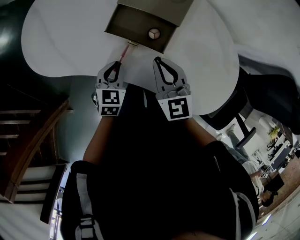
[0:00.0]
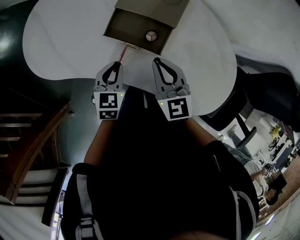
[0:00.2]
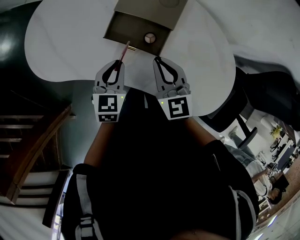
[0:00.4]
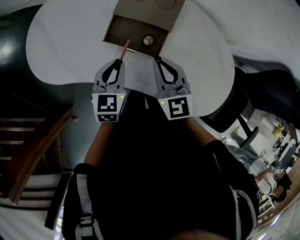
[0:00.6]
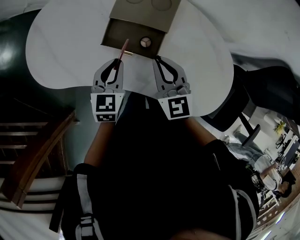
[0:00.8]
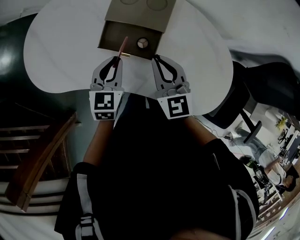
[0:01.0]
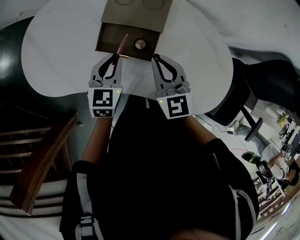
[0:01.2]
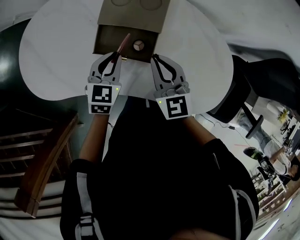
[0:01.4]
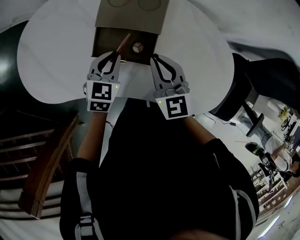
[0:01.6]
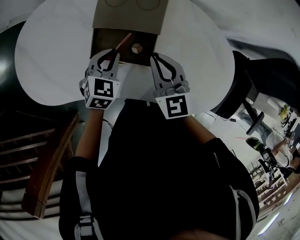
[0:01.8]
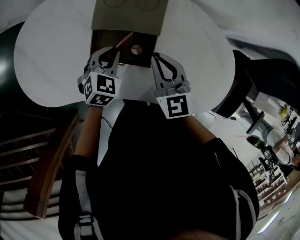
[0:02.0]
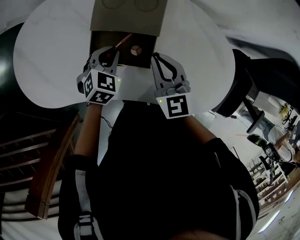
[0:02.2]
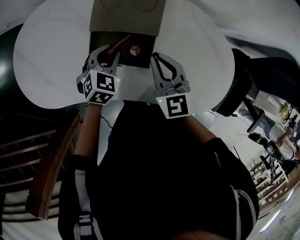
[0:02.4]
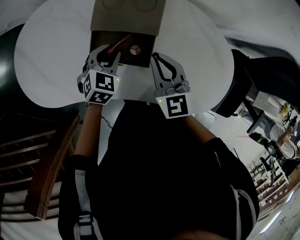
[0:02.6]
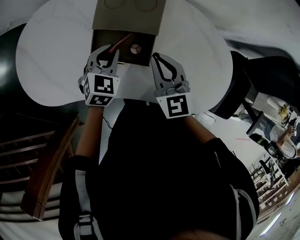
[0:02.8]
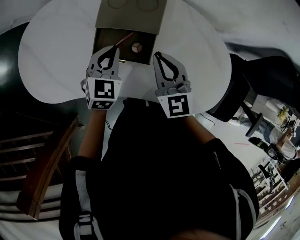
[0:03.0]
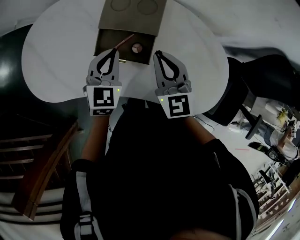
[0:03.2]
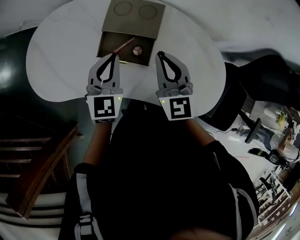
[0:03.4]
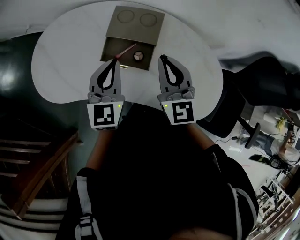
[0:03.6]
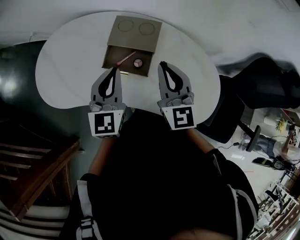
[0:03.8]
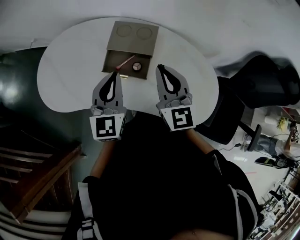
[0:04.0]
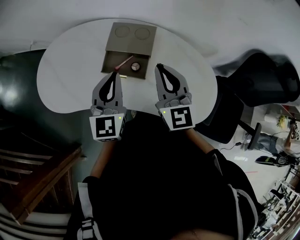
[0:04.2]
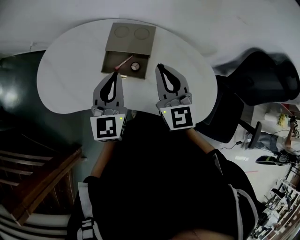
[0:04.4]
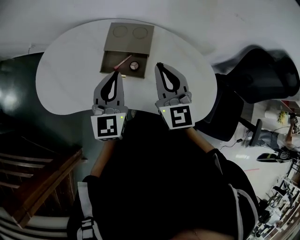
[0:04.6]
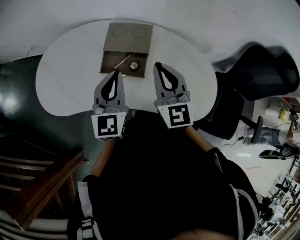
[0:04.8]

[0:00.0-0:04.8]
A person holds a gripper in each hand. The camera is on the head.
0:00.0 to 0:01.6: The right gripper goes about 5 cm forward; the left gripper is displaced forward, to the right and upward by approximately 15 cm.
0:01.6 to 0:03.2: The right gripper shifts some 5 cm upward. Meanwhile the left gripper travels upward by some 10 cm.
0:03.2 to 0:04.8: Both grippers move upward and backward, roughly 15 cm. The left gripper swivels some 20 degrees.

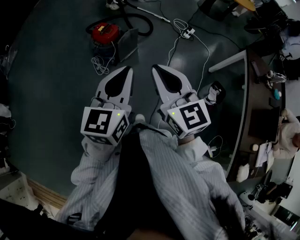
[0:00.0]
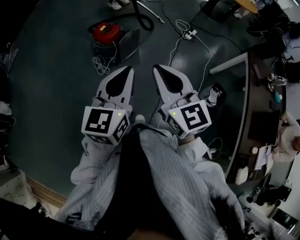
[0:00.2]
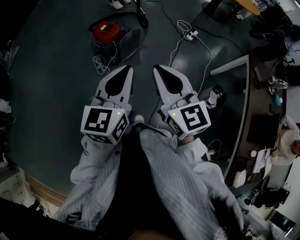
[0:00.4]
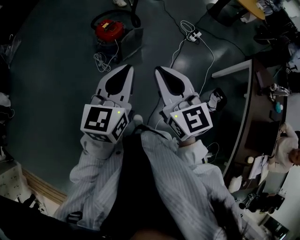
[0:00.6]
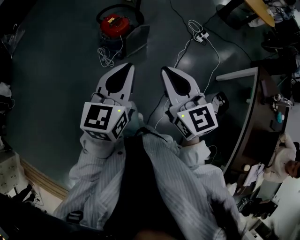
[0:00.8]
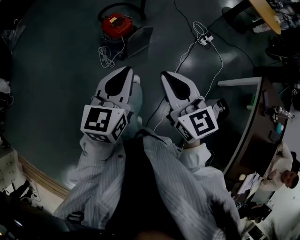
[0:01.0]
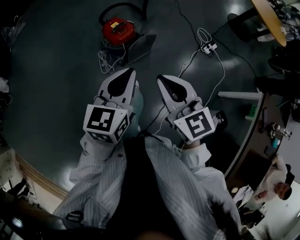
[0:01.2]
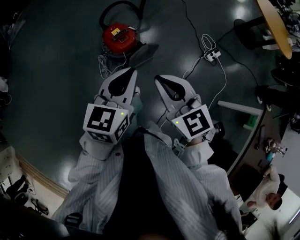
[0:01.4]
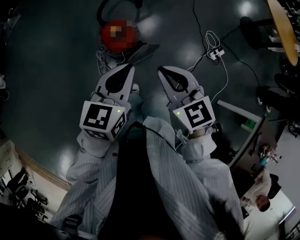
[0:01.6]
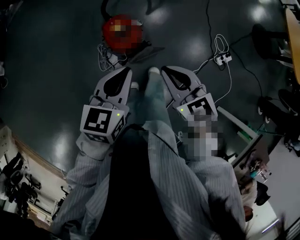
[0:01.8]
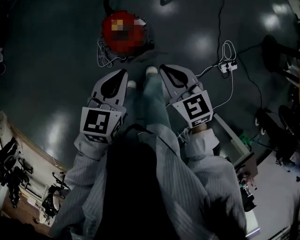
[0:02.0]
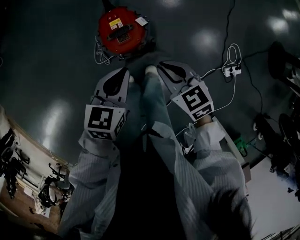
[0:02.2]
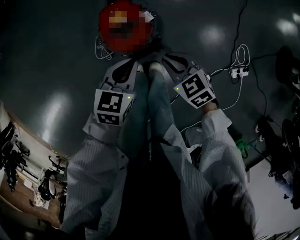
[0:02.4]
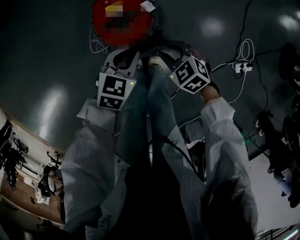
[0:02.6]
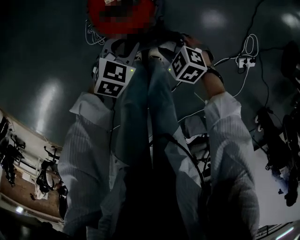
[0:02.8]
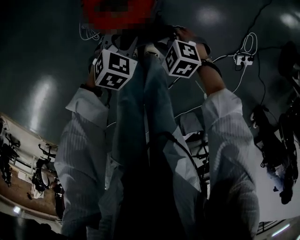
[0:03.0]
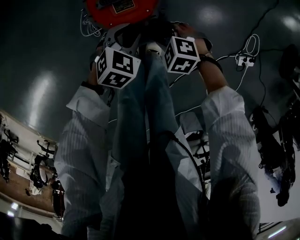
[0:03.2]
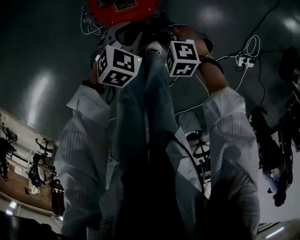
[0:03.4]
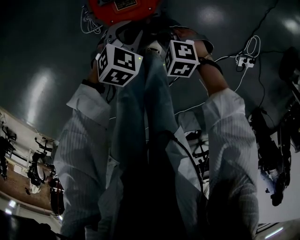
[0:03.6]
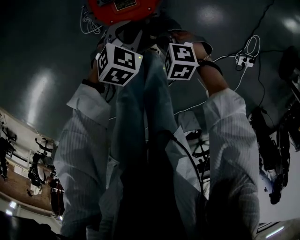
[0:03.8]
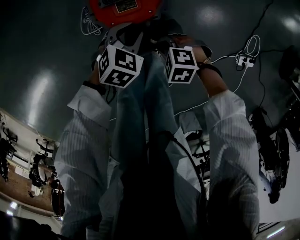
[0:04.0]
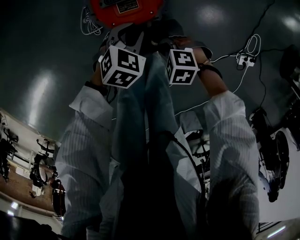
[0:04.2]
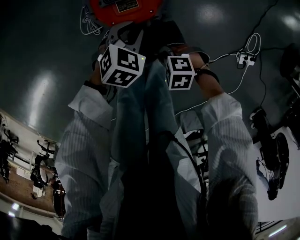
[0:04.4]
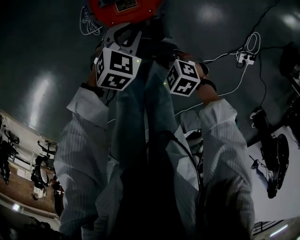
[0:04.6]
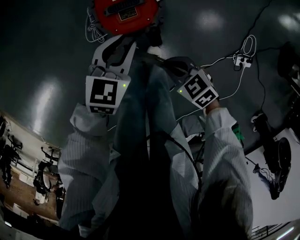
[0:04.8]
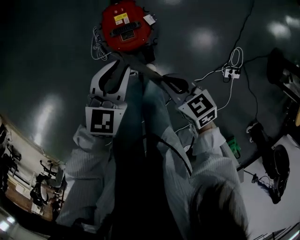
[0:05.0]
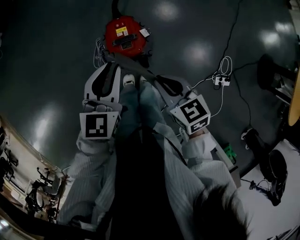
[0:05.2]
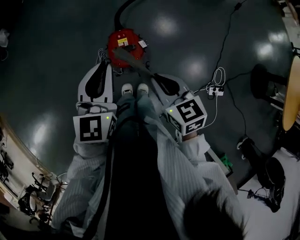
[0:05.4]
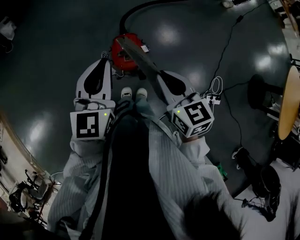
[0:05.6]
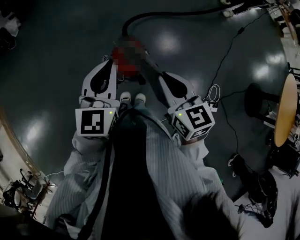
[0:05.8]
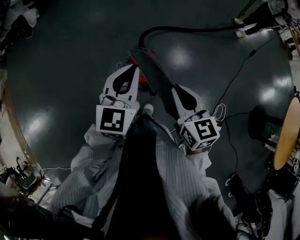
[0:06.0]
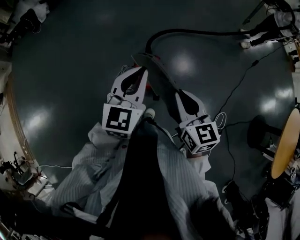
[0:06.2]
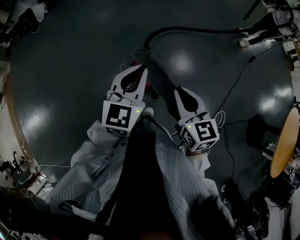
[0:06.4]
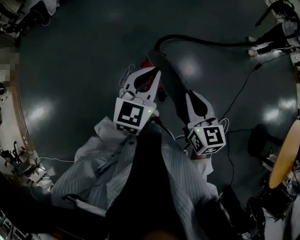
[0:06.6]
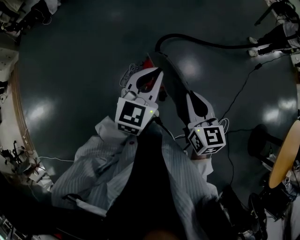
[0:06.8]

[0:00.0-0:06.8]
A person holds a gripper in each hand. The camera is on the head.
0:00.0 to 0:01.4: The grippers both shift forward by some 35 cm. The right gripper changes its angle by about 30 degrees.
0:01.4 to 0:02.8: The grippers both shift downward by roughly 60 cm. The right gripper angles its fingers downward, by approximately 40 degrees, and opens its fingers, while the left gripper tips its fingers downward by roughly 30 degrees, and opens its fingers.
0:02.8 to 0:04.0: The right gripper changes place by some 5 cm, turns by about 20 degrees, and closes up.
0:04.0 to 0:05.4: Both grippers move upward, approximately 40 cm. The left gripper tilts its fingers approximately 40 degrees upward, and closes up, while the right gripper tilts its fingers roughly 30 degrees upward.
0:05.4 to 0:06.8: The left gripper moves about 5 cm. The right gripper goes roughly 10 cm upward.

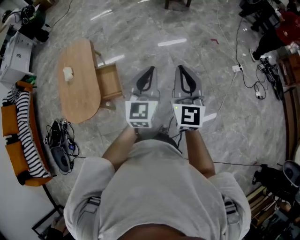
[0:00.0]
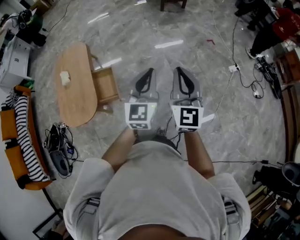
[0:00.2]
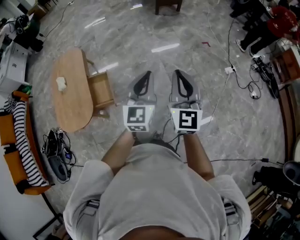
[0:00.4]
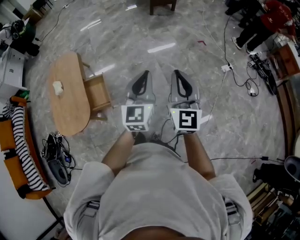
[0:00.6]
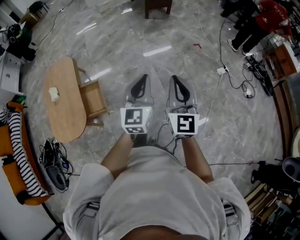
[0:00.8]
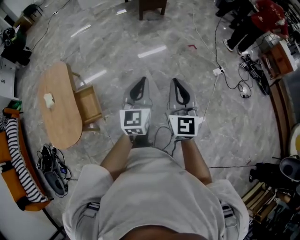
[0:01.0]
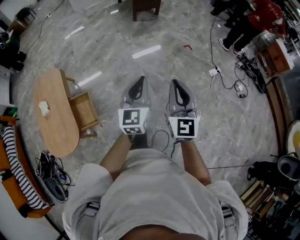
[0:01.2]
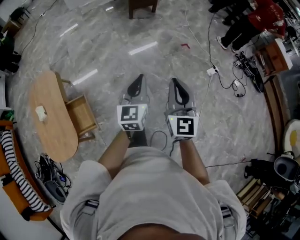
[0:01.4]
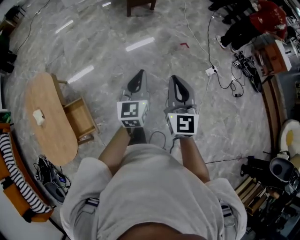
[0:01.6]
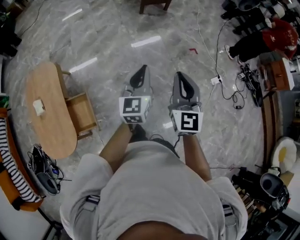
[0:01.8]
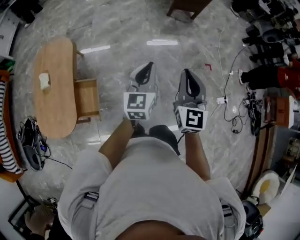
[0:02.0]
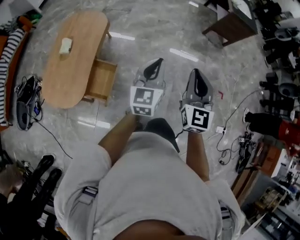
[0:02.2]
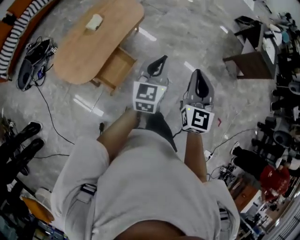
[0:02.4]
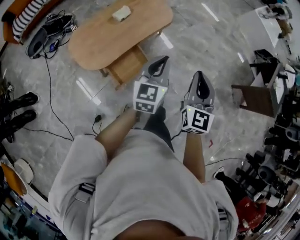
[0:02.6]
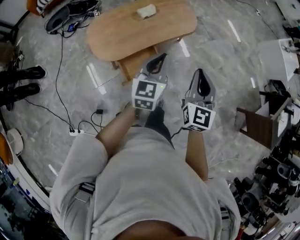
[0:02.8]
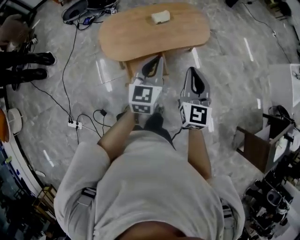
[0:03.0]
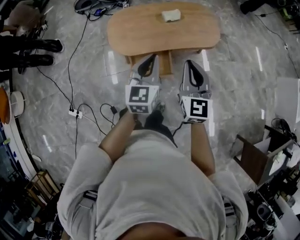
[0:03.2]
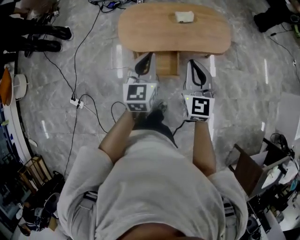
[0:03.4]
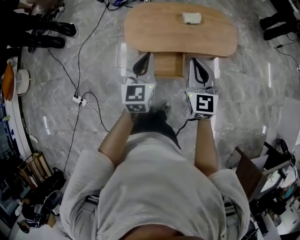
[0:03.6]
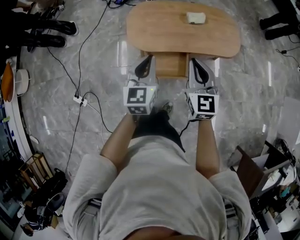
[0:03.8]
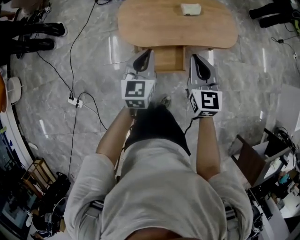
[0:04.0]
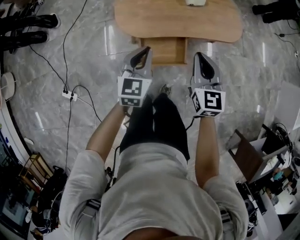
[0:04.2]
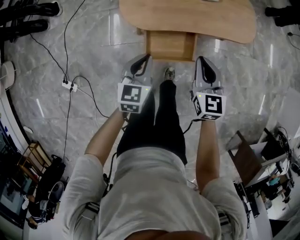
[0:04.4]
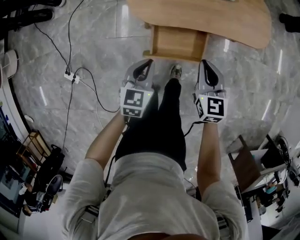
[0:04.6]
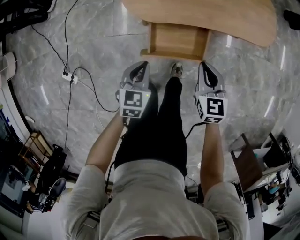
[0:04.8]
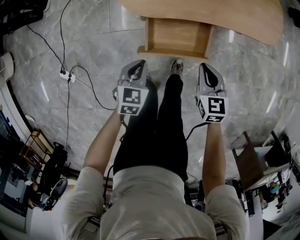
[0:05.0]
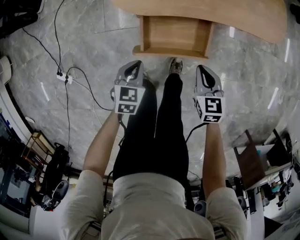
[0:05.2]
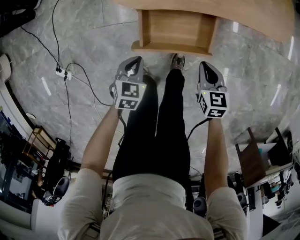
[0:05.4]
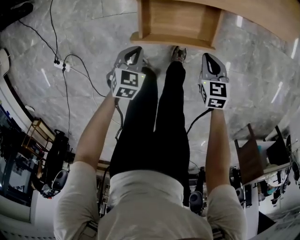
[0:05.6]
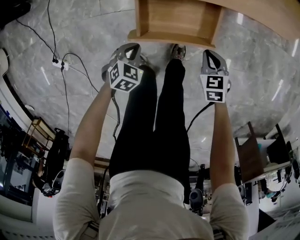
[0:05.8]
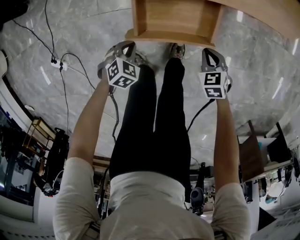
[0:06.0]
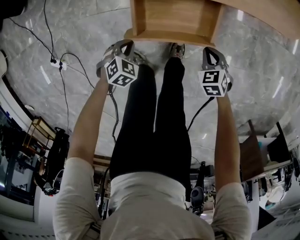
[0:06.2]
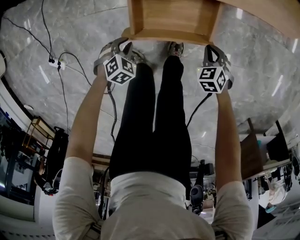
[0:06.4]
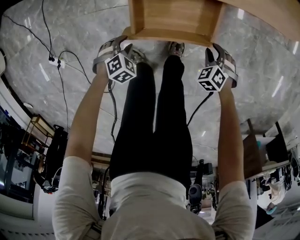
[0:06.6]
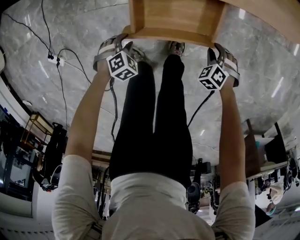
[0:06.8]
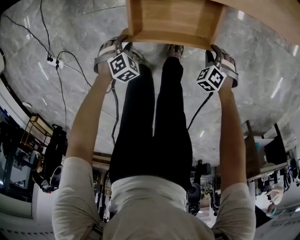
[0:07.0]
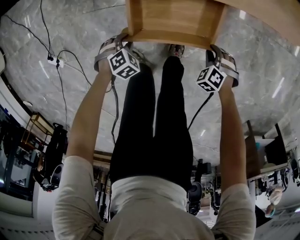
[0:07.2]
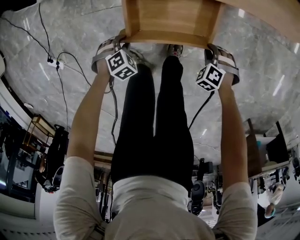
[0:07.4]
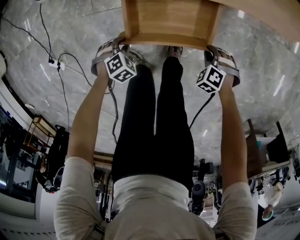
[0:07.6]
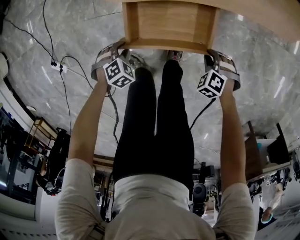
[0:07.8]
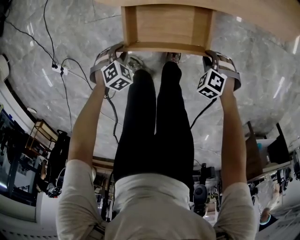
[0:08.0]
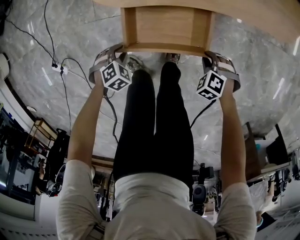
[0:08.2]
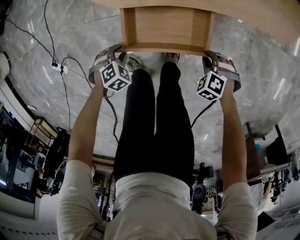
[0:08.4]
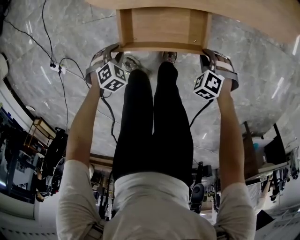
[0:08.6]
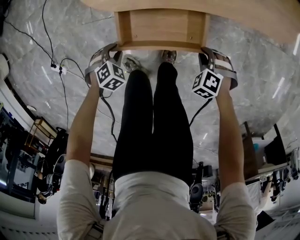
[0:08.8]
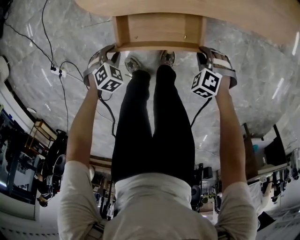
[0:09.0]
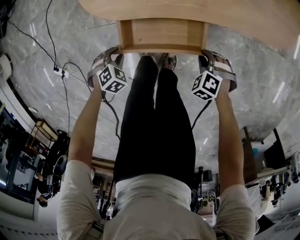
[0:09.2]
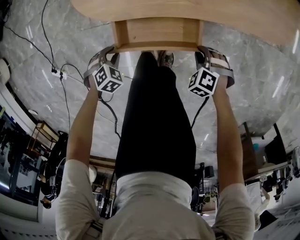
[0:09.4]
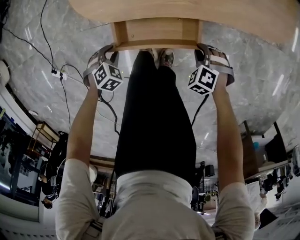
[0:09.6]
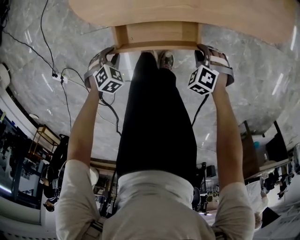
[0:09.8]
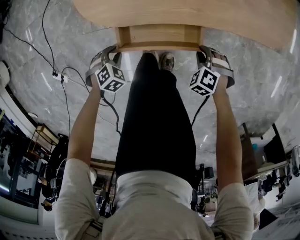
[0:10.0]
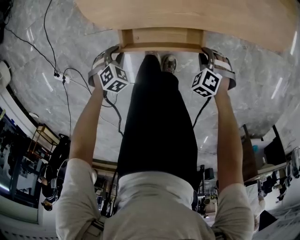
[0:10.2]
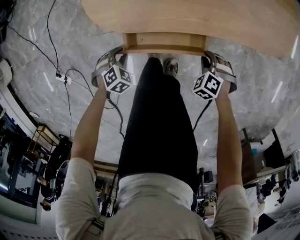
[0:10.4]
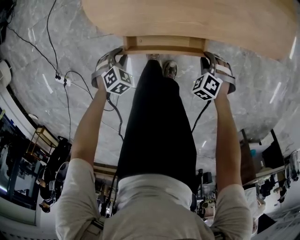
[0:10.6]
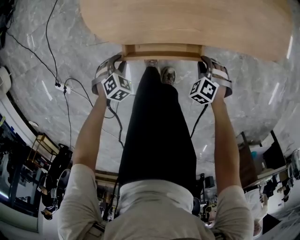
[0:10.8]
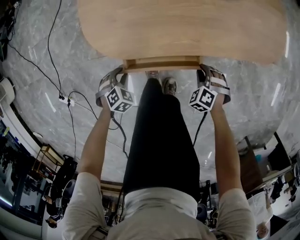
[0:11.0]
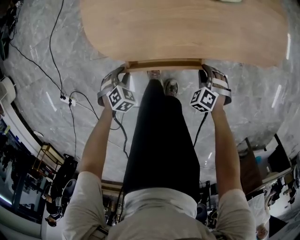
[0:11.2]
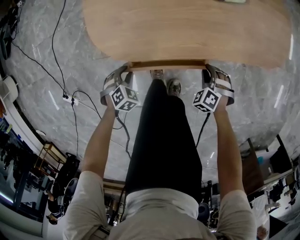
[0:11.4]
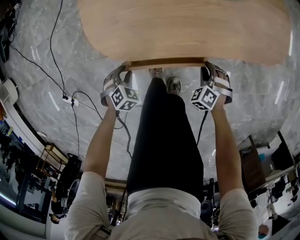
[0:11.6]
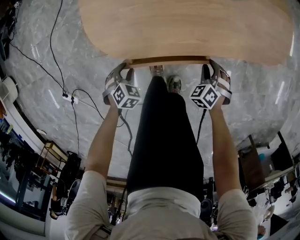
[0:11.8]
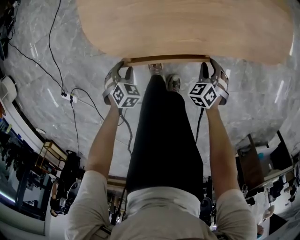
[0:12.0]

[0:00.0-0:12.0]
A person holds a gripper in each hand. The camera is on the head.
0:00.0 to 0:01.6: Both grippers move forward, about 25 cm.
0:01.6 to 0:03.0: The two grippers travel together, approximately 60 cm. The left gripper swivels approximately 90 degrees; the right gripper swivels roughly 90 degrees.
0:03.0 to 0:04.4: The right gripper moves downward and forward, roughly 20 cm, and swivels roughly 30 degrees. Meanwhile the left gripper shifts approximately 25 cm downward and to the left, and rotates about 20 degrees.
0:04.4 to 0:06.0: Both grippers travel together downward, about 40 cm. The left gripper points its fingers about 40 degrees further downward; the right gripper tips its fingers downward by some 40 degrees.
0:06.0 to 0:07.6: The two grippers go approximately 5 cm downward. The right gripper rolls counterclockwise, seen from behind, by roughly 40 degrees; the left gripper opens up.
0:07.6 to 0:09.0: The left gripper shifts roughly 5 cm upward. Meanwhile the right gripper ends up some 10 cm from where it was.
0:09.0 to 0:10.4: The left gripper ends up roughly 5 cm from where it was, while the right gripper ends up approximately 5 cm from where it was.
0:10.4 to 0:12.0: The right gripper ends up about 5 cm from where it was, and rotates roughly 30 degrees; the left gripper ends up about 5 cm from where it was.
